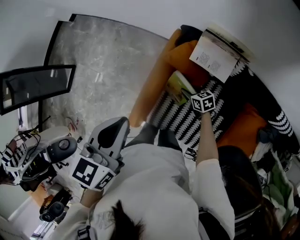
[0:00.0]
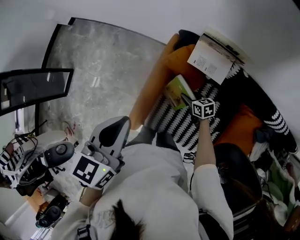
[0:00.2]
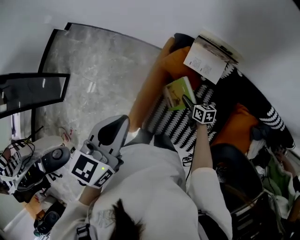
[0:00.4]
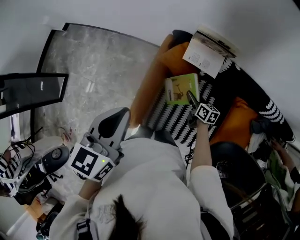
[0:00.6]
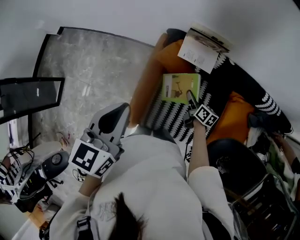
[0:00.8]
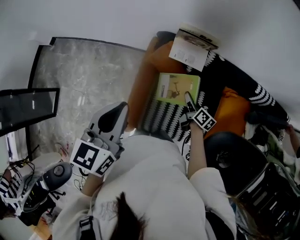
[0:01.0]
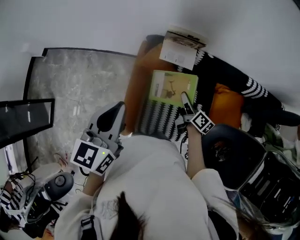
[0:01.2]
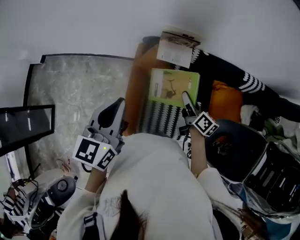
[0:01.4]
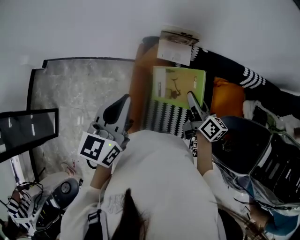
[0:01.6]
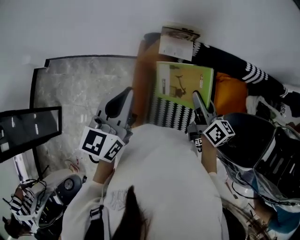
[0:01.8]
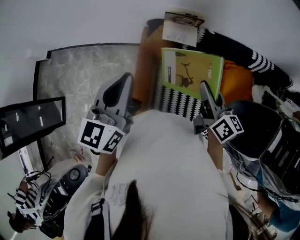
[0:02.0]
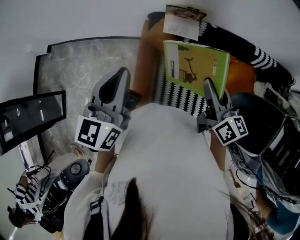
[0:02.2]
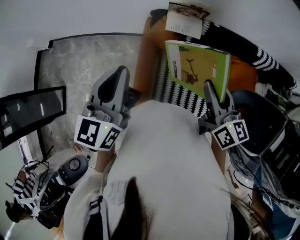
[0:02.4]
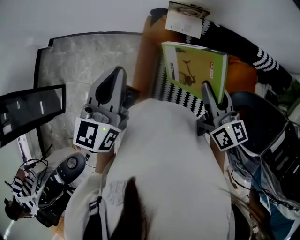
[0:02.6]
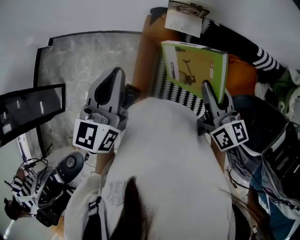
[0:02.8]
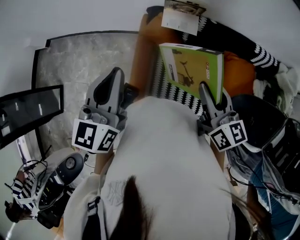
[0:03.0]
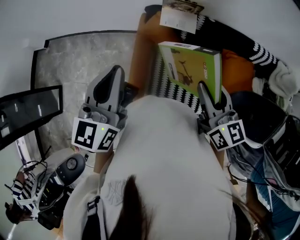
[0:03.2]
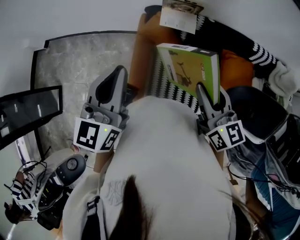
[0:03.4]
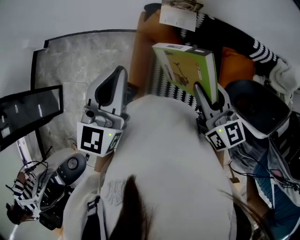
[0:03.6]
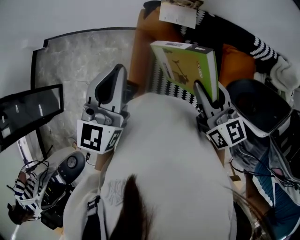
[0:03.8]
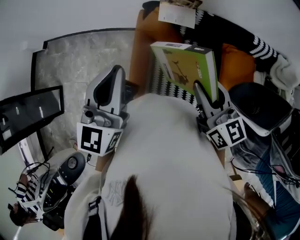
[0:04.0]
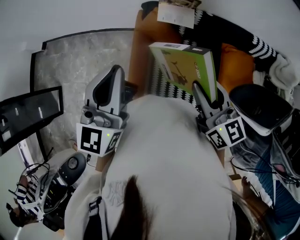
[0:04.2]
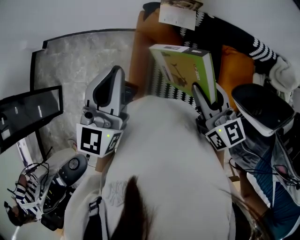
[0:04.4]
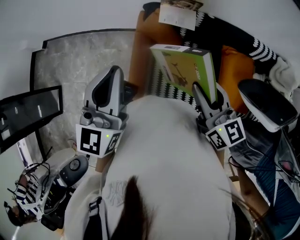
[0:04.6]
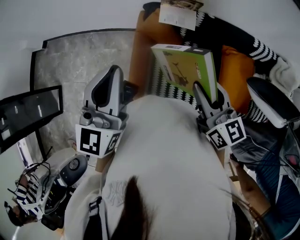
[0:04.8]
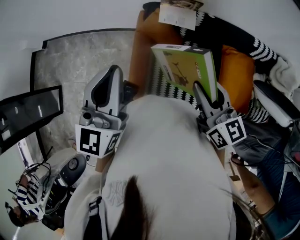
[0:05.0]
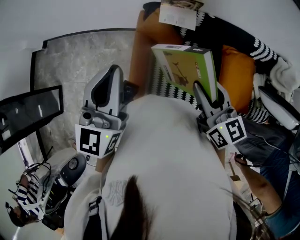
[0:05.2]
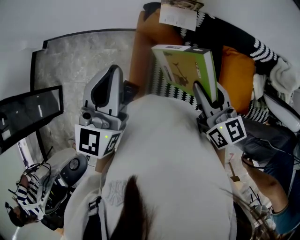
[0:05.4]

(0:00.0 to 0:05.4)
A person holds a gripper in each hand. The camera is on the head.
0:00.0 - 0:01.4: The right gripper shifts about 30 cm upward, and swivels about 70 degrees. The left gripper goes roughly 5 cm upward, and turns by roughly 20 degrees.
0:01.4 - 0:02.8: The left gripper moves about 5 cm; the right gripper travels upward and backward by roughly 20 cm, and turns by some 30 degrees.
0:02.8 - 0:05.4: There are only small adjustments of the grippers.

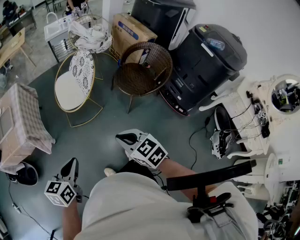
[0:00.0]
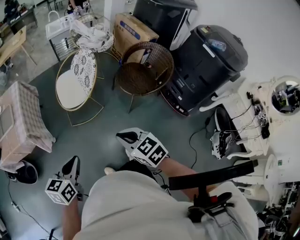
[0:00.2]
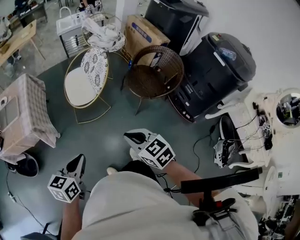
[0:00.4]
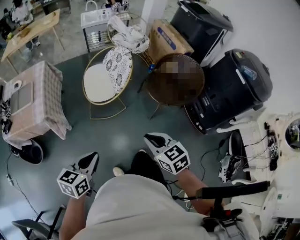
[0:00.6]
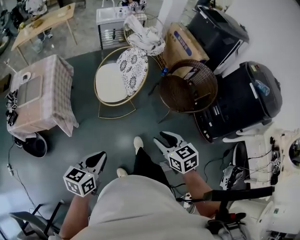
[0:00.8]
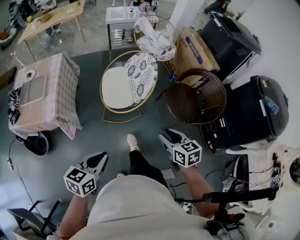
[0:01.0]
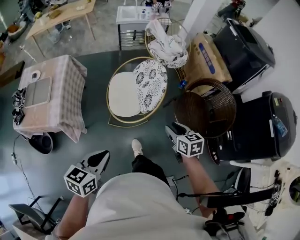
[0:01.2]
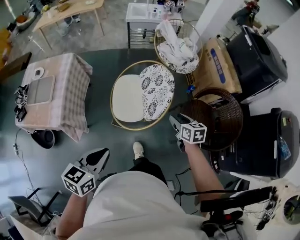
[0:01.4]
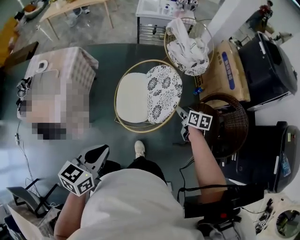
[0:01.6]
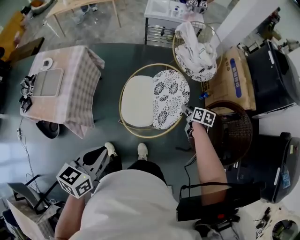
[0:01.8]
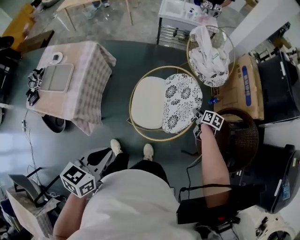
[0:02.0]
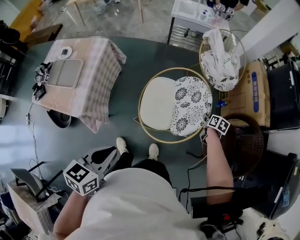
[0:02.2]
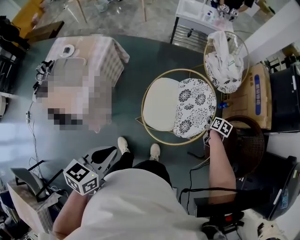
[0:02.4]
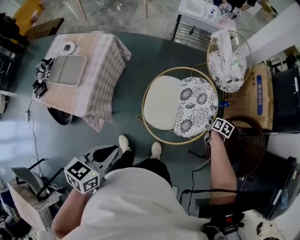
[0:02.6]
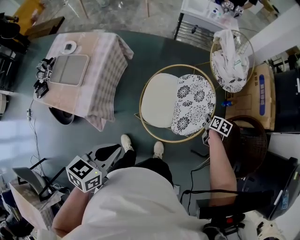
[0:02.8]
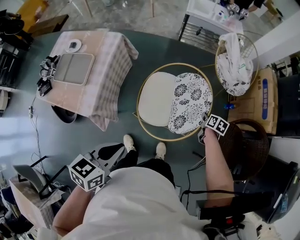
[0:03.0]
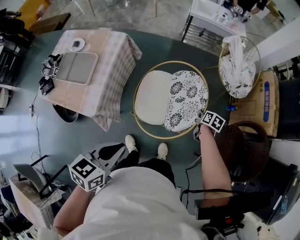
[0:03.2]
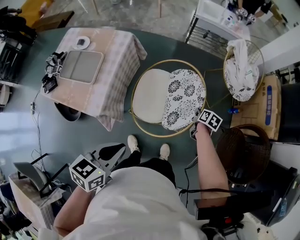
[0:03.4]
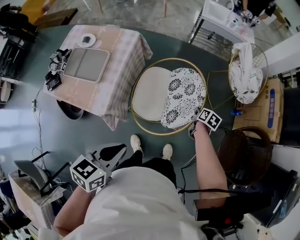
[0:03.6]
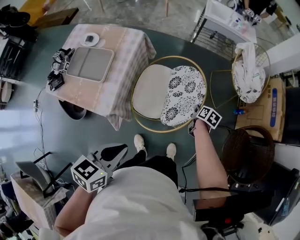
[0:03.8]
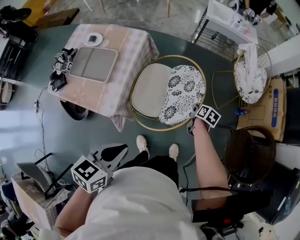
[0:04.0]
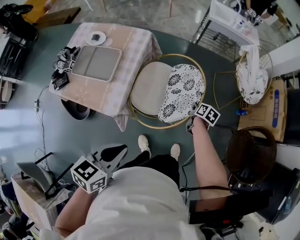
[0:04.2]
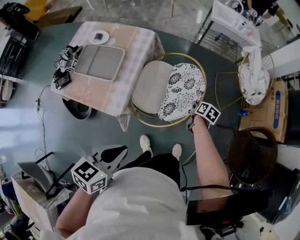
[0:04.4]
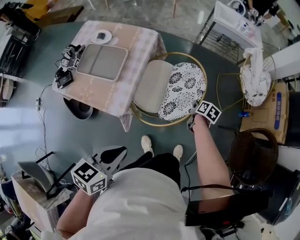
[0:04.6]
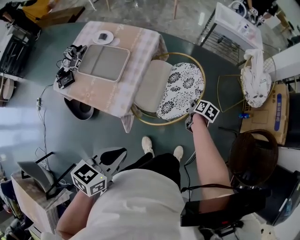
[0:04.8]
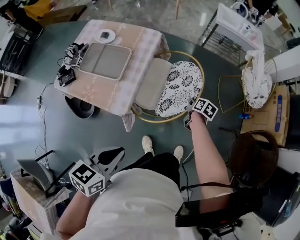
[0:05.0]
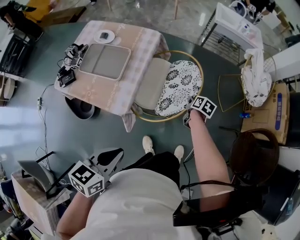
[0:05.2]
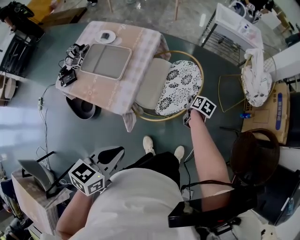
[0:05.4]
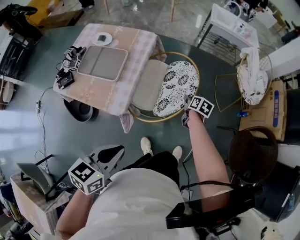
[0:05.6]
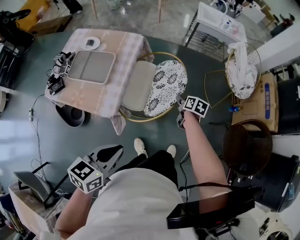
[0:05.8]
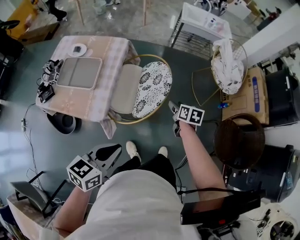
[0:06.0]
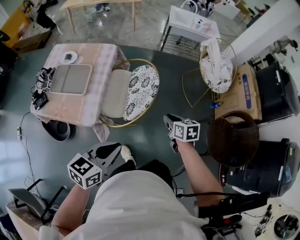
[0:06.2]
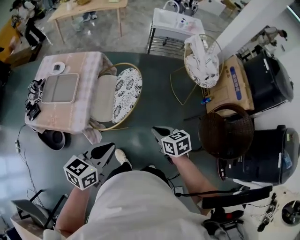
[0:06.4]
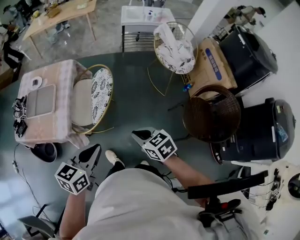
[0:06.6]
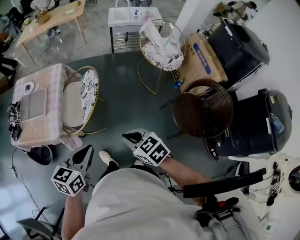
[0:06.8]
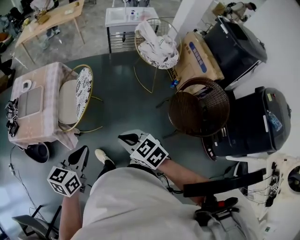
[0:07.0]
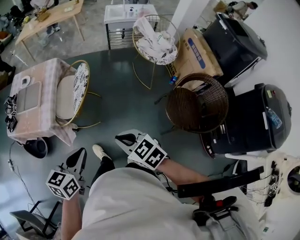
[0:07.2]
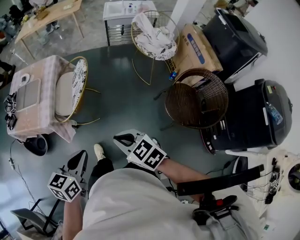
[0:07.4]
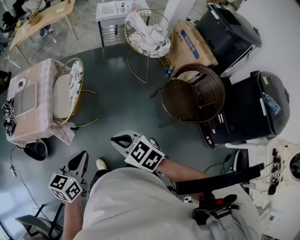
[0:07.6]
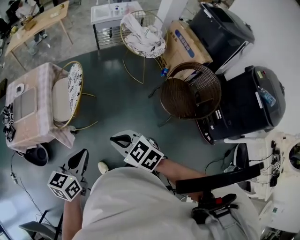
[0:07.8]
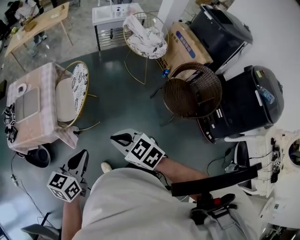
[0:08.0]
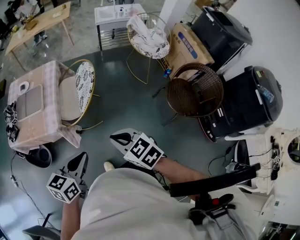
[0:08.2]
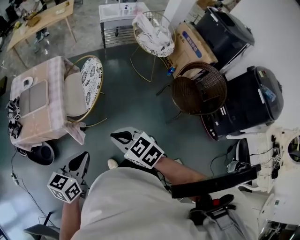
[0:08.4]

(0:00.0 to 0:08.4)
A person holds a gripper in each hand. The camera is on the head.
0:00.0 - 0:01.4: The right gripper is displaced forward by about 50 cm, and opens up; the left gripper moves forward, some 25 cm.
0:01.4 - 0:02.8: The left gripper shifts roughly 15 cm to the left and forward; the right gripper heads forward and downward, covering some 25 cm, swivels some 20 degrees, and closes up.
0:02.8 - 0:04.2: The right gripper travels to the left by approximately 30 cm, while the left gripper heads to the left, covering approximately 15 cm.
0:04.2 - 0:05.6: The left gripper changes place by approximately 5 cm. Meanwhile the right gripper heads to the left, covering approximately 10 cm, and opens.
0:05.6 - 0:07.0: The left gripper shifts about 25 cm to the right. Meanwhile the right gripper moves backward and upward, about 40 cm, twists approximately 50 degrees counterclockwise, seen from behind, and closes its fingers.
0:07.0 - 0:08.4: The right gripper heads to the left, covering roughly 15 cm. Meanwhile the left gripper heads to the left and backward, covering roughly 15 cm.

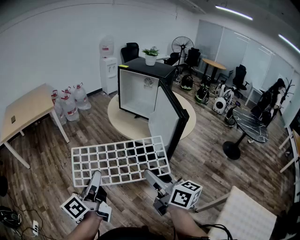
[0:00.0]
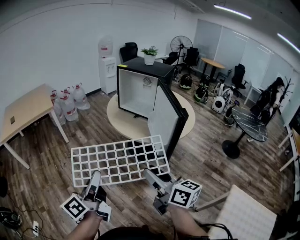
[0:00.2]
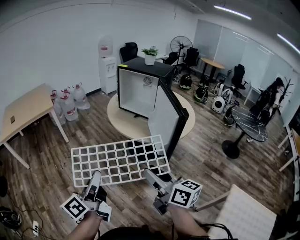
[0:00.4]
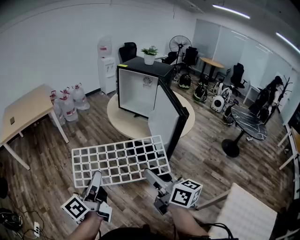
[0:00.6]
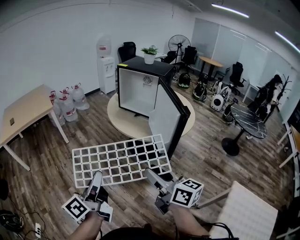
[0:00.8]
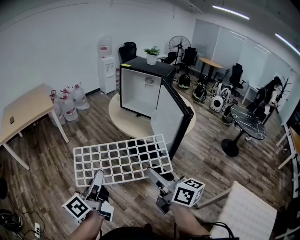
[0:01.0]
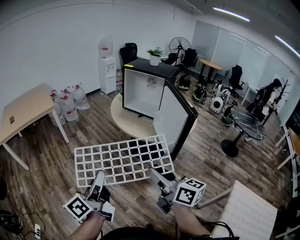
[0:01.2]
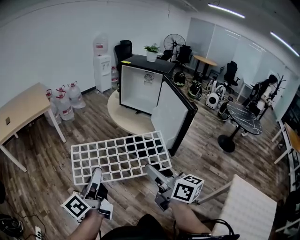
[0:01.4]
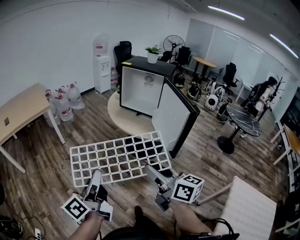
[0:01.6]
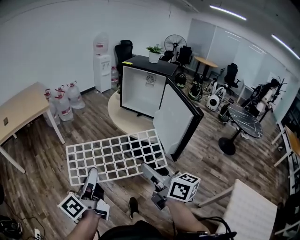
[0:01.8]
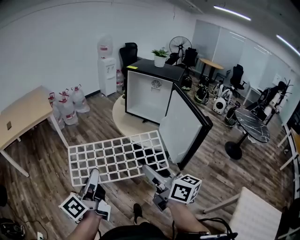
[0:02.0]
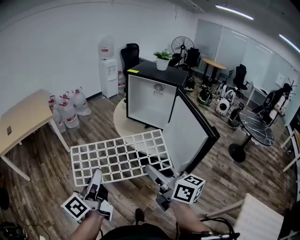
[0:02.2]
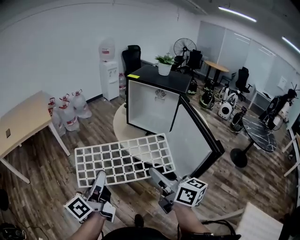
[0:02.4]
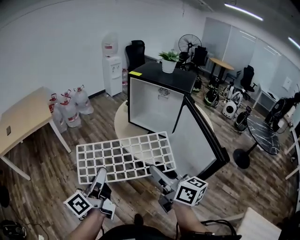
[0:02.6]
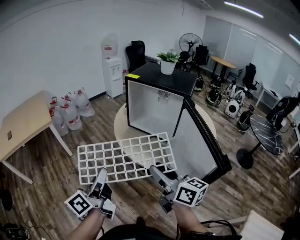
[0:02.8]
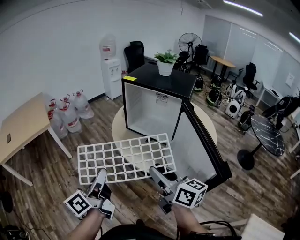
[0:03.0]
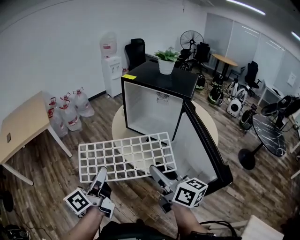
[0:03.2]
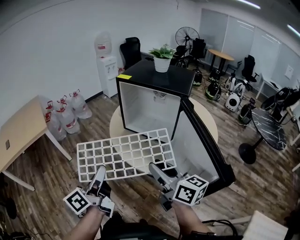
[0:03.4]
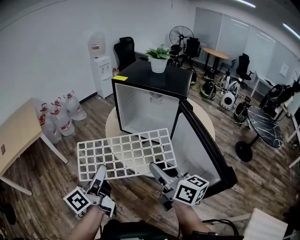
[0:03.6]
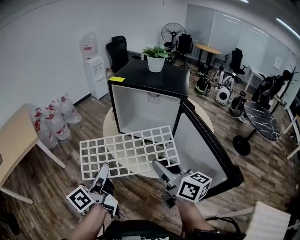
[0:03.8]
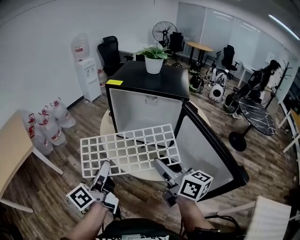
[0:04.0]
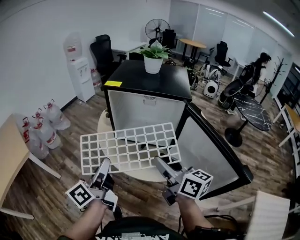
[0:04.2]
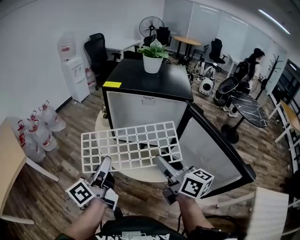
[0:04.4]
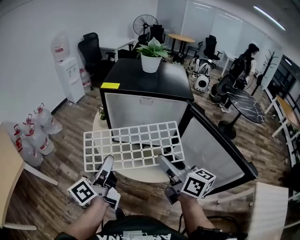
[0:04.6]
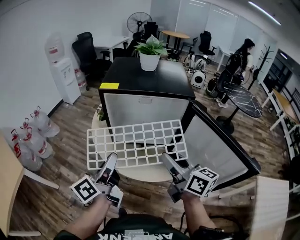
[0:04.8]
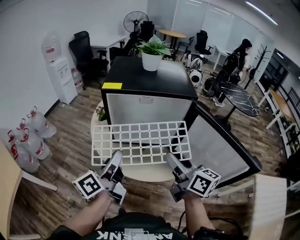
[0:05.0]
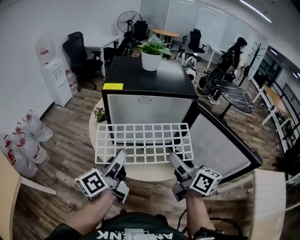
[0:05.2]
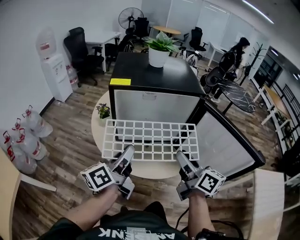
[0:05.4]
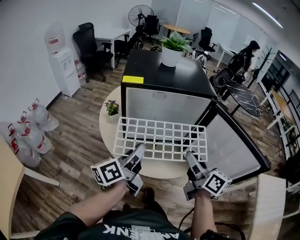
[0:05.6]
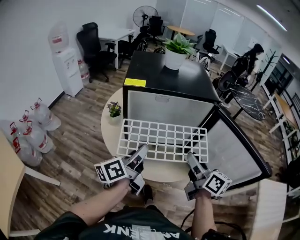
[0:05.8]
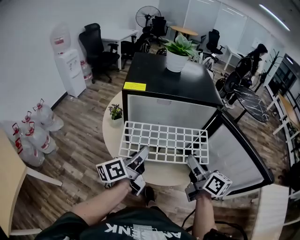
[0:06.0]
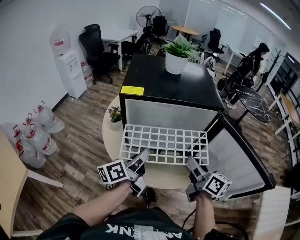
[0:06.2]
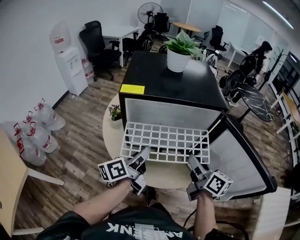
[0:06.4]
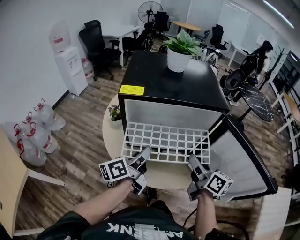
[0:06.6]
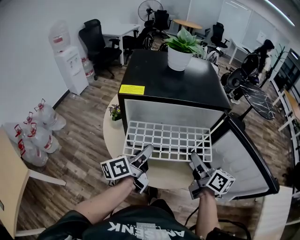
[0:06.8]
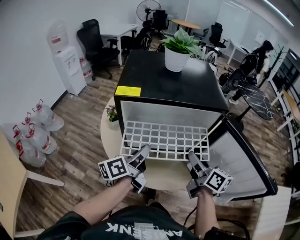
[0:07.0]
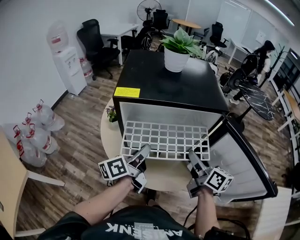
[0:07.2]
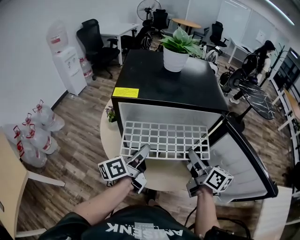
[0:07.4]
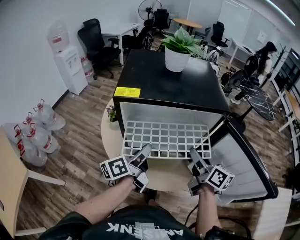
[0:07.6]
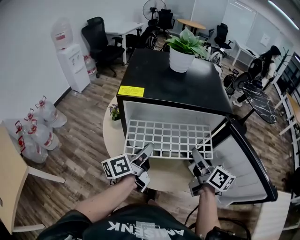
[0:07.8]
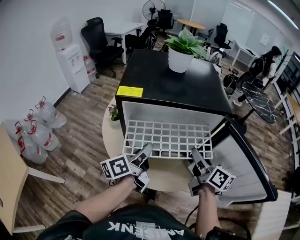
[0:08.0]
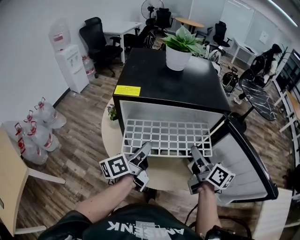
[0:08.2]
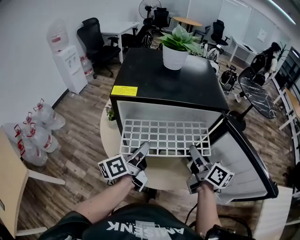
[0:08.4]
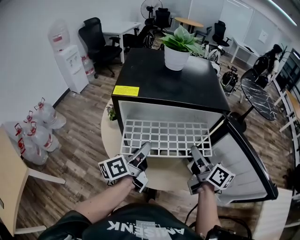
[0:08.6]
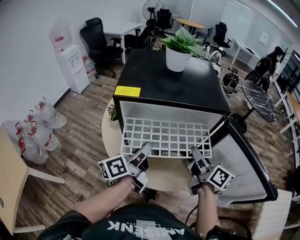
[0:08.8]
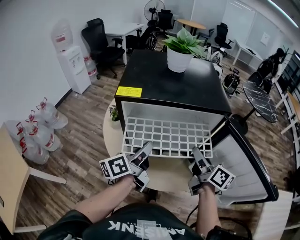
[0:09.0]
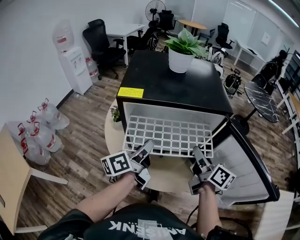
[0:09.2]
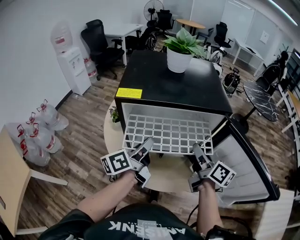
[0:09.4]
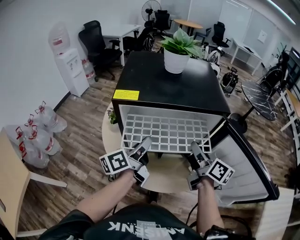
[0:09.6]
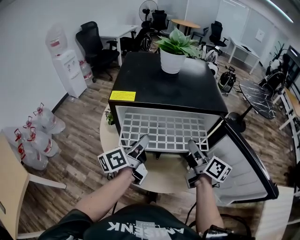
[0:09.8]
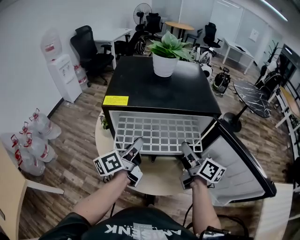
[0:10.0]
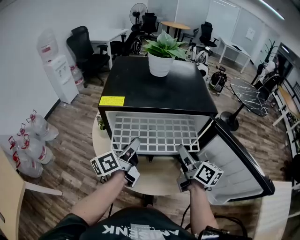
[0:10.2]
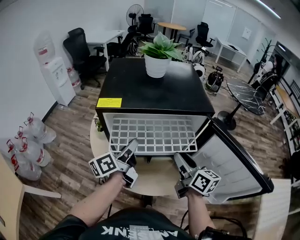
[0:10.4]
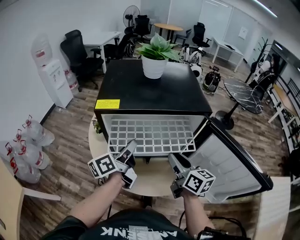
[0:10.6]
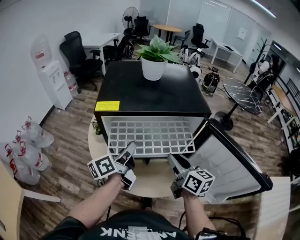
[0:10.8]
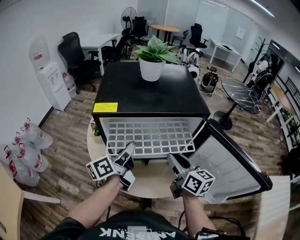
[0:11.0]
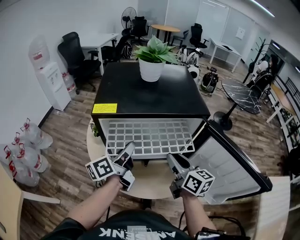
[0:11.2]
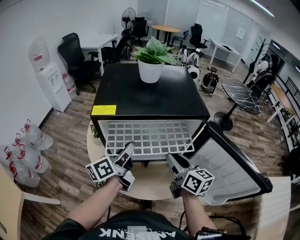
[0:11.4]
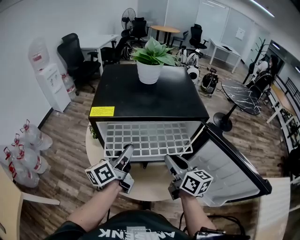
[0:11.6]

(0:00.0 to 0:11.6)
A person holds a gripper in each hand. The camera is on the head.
0:00.0 - 0:01.4: The two grippers go approximately 5 cm to the left.
0:01.4 - 0:02.8: The two grippers go roughly 30 cm forward.
0:02.8 - 0:04.4: The grippers both shift forward by approximately 20 cm. The left gripper turns by roughly 20 degrees, while the right gripper swivels roughly 20 degrees.
0:04.4 - 0:05.8: The right gripper shifts by approximately 10 cm, and turns by approximately 30 degrees, while the left gripper moves roughly 10 cm, and rotates some 30 degrees.
0:05.8 - 0:07.2: Both grippers travel together forward, approximately 10 cm.
0:07.2 - 0:08.8: The right gripper turns by roughly 20 degrees.
0:08.8 - 0:10.2: The left gripper heads forward, covering approximately 5 cm.
0:10.2 - 0:11.6: The grippers move only a little.
